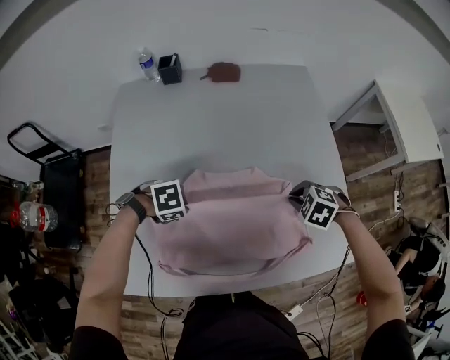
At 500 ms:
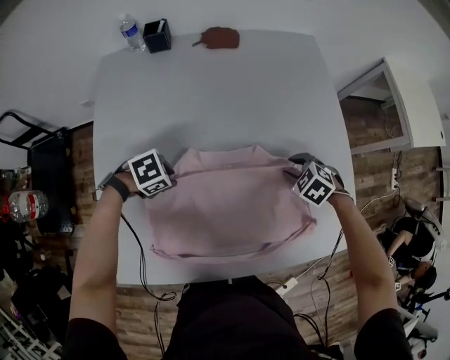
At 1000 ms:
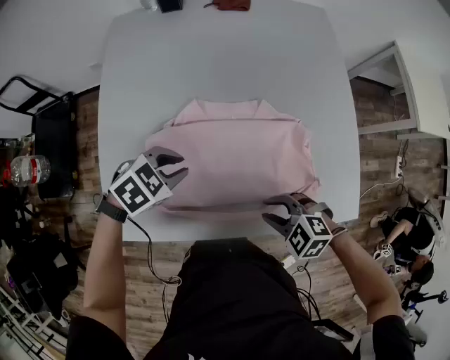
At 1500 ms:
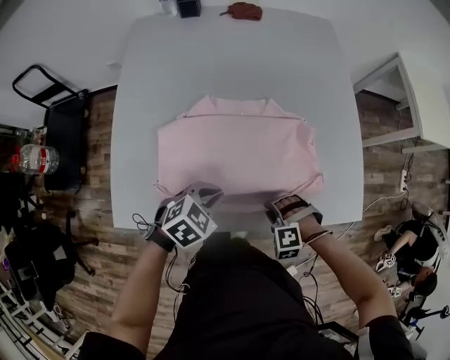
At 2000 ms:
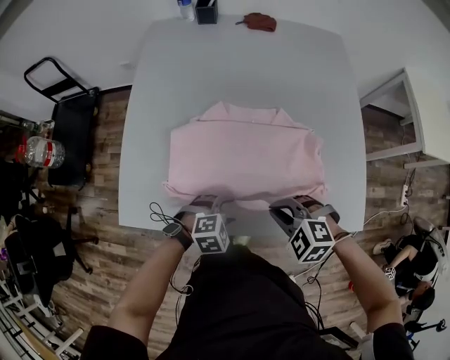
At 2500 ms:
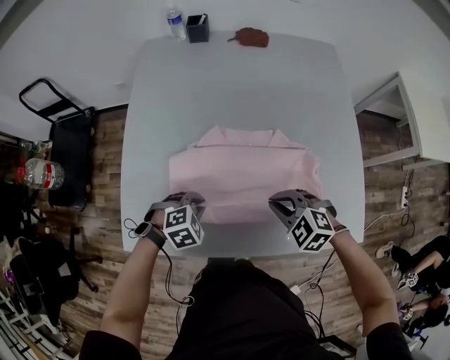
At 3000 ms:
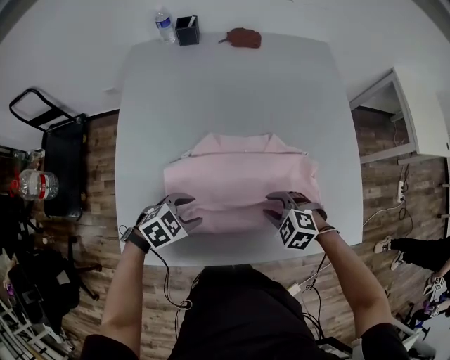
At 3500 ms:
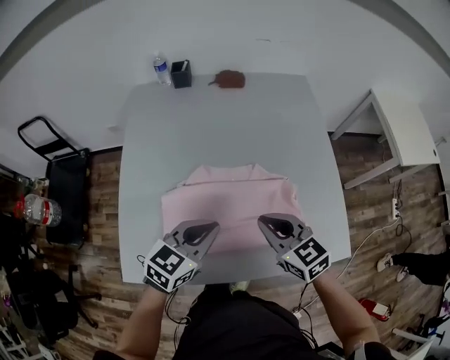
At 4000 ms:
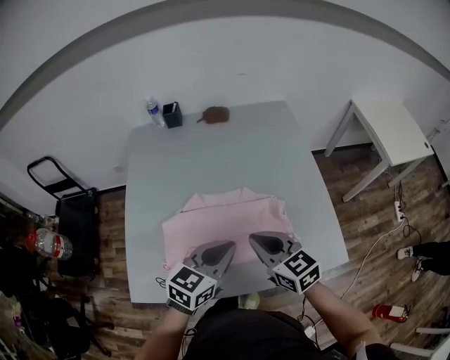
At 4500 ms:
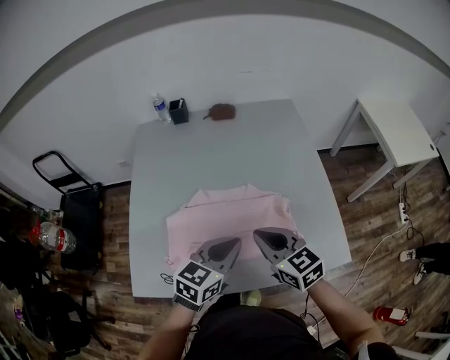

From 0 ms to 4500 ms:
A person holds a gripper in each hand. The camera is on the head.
From 0 ms to 2000 ms: The left gripper goes up and down, some 10 cm each way, reversing 2 times, rotates some 30 degrees, and opens up; the right gripper goes up and down, about 10 cm each way, reversing 3 times, changes its angle by about 30 degrees, and opens, then closes once more.
From 2000 ms to 4500 ms: The left gripper shifts some 25 cm upward, angles its fingers upward, by approximately 40 degrees, and closes. The right gripper shifts about 15 cm upward, tilts its fingers approximately 40 degrees upward, and opens, then closes again.

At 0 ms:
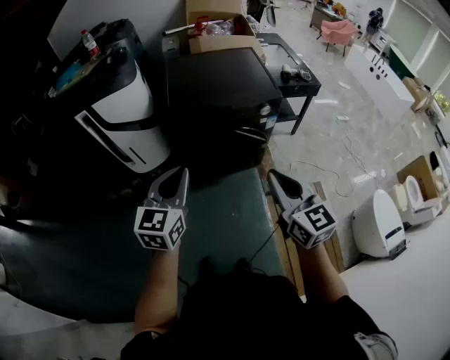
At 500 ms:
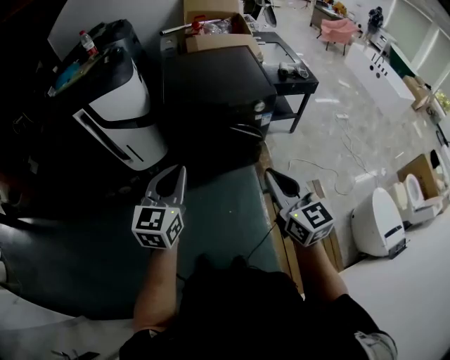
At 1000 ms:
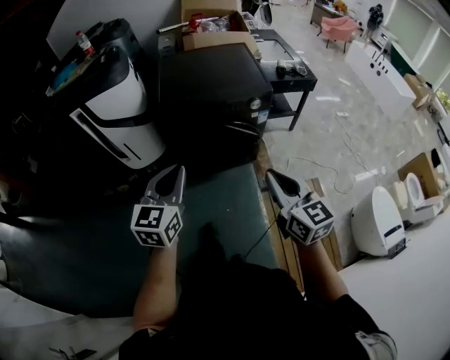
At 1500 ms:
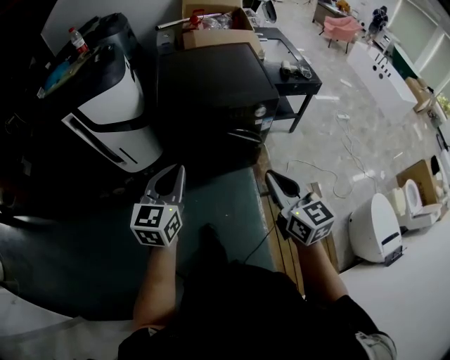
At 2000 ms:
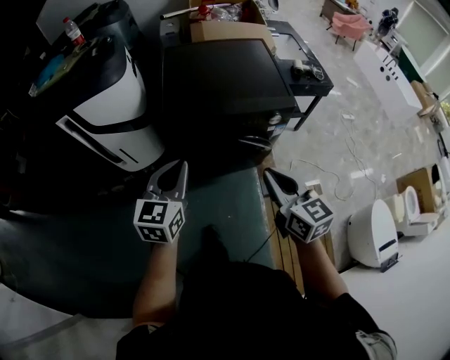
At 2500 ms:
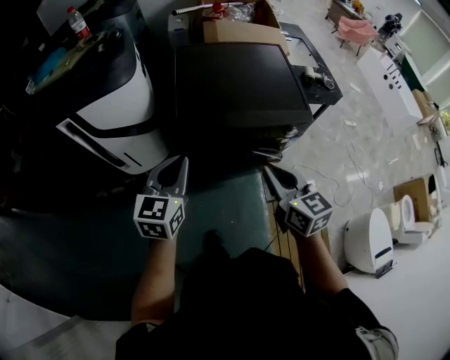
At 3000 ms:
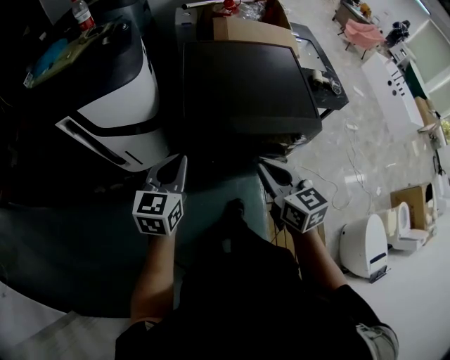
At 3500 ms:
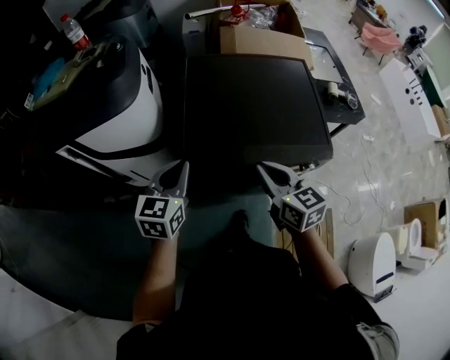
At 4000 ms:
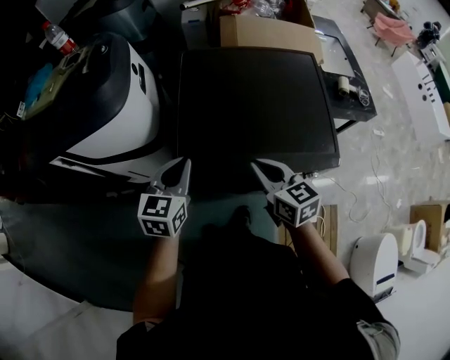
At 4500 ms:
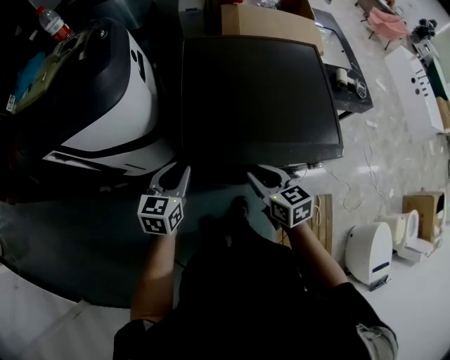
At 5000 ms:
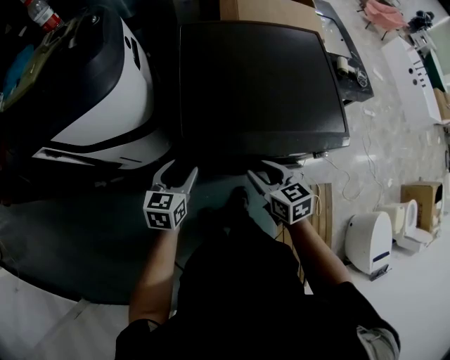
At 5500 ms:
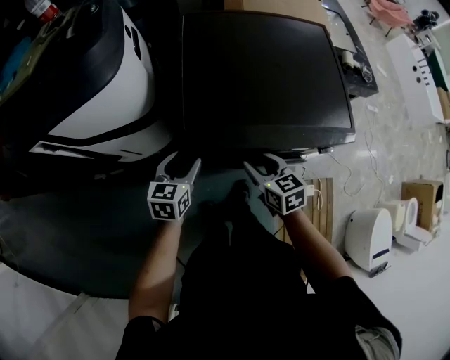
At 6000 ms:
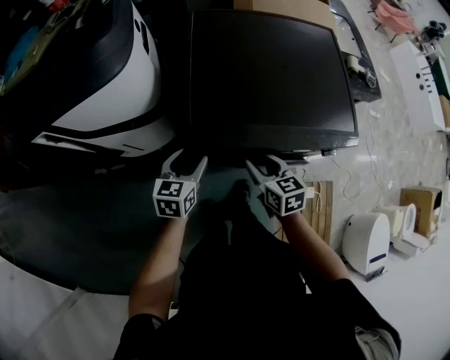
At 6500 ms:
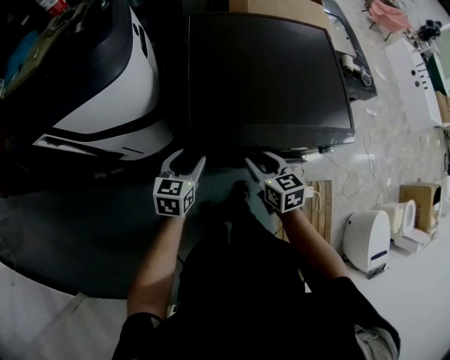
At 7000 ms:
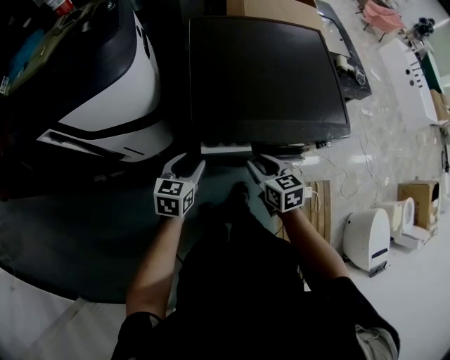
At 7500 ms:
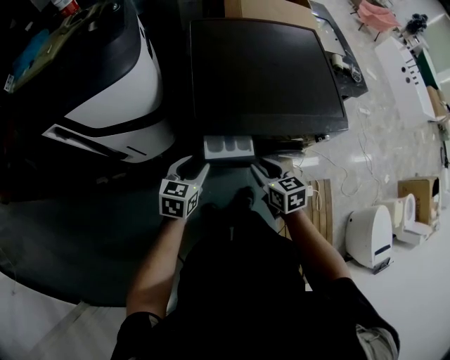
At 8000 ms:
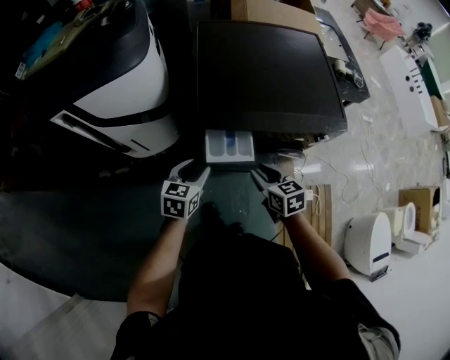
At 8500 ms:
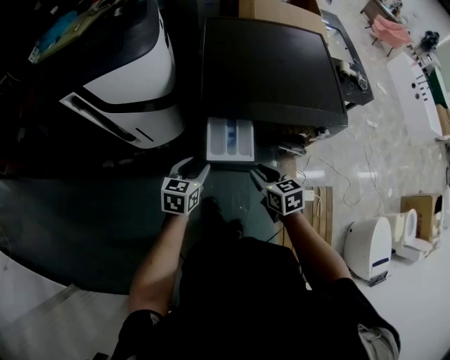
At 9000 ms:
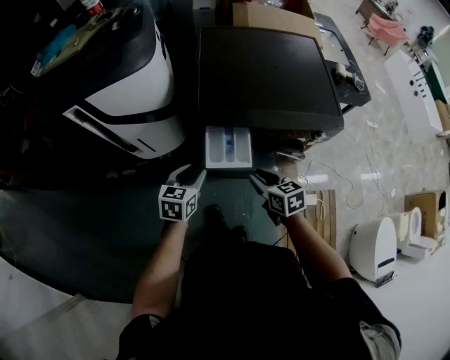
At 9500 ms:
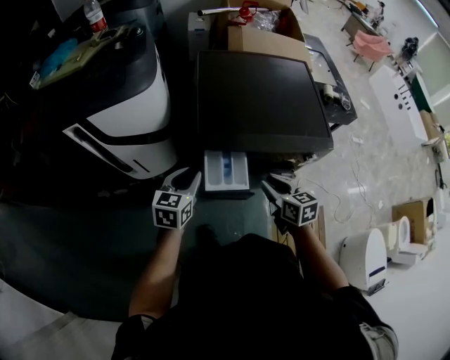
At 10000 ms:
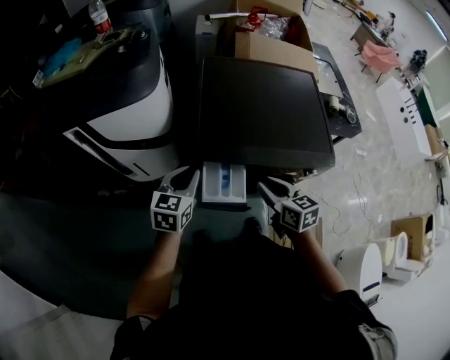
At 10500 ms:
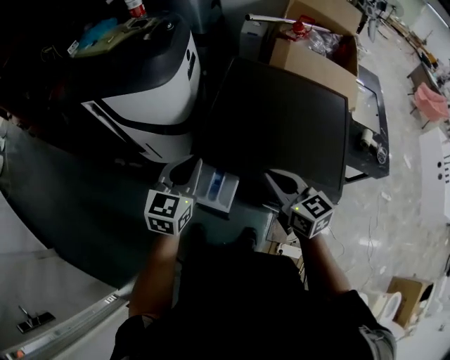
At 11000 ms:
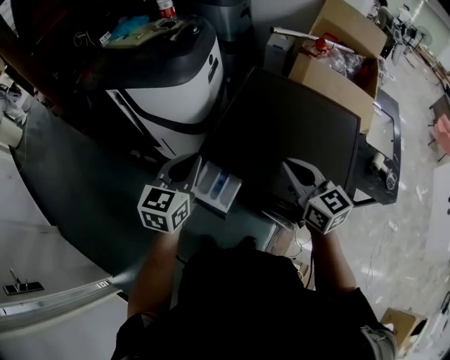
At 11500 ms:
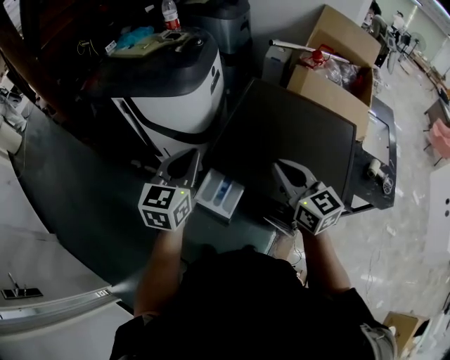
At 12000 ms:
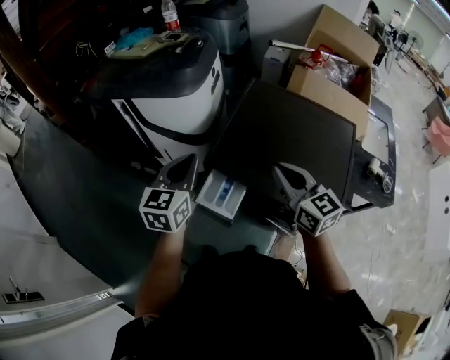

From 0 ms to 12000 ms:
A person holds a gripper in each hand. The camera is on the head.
From 0 ms to 2000 ms: Both grippers travel together forward, some 20 cm.
From 2000 ms to 4000 ms: The two grippers go approximately 35 cm forward.
From 4000 ms to 6000 ms: The right gripper goes some 15 cm downward and to the left, and opens. The left gripper heads downward, covering about 15 cm, and opens up.
From 6000 ms to 8000 ms: Both grippers travel together backward, roughly 10 cm.
From 8000 ms to 10000 ms: The two grippers go some 10 cm upward. The left gripper closes its fingers.
From 10000 ms to 12000 ms: The two grippers go about 15 cm upward. The left gripper changes its angle by approximately 30 degrees. Meanwhile the right gripper changes its angle by some 40 degrees, and closes.

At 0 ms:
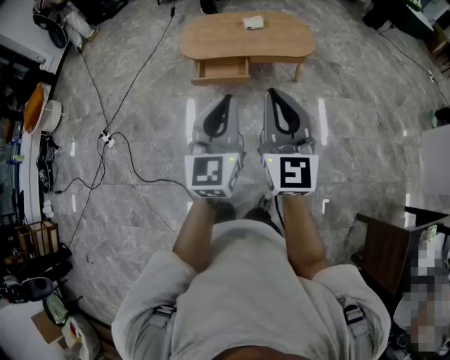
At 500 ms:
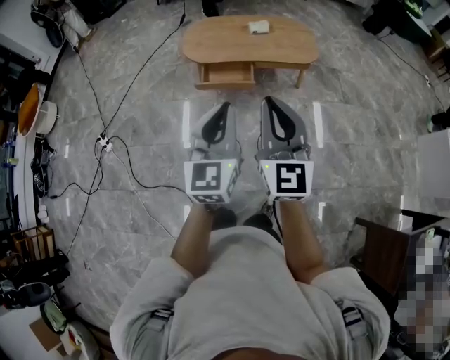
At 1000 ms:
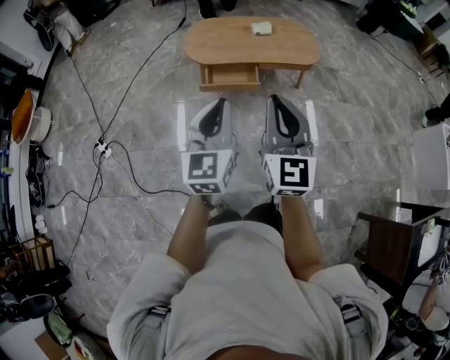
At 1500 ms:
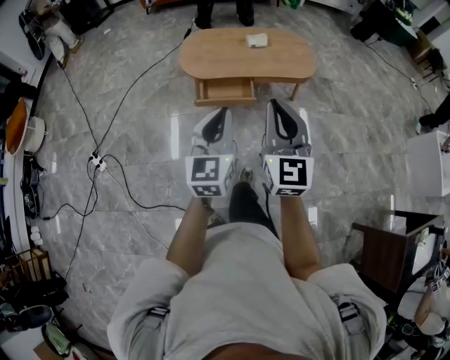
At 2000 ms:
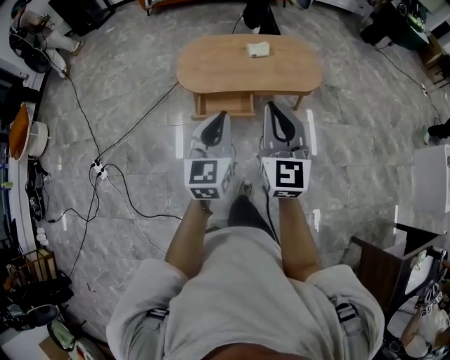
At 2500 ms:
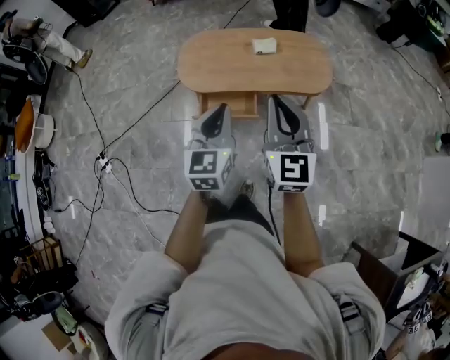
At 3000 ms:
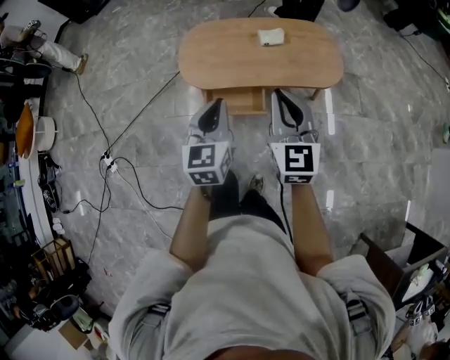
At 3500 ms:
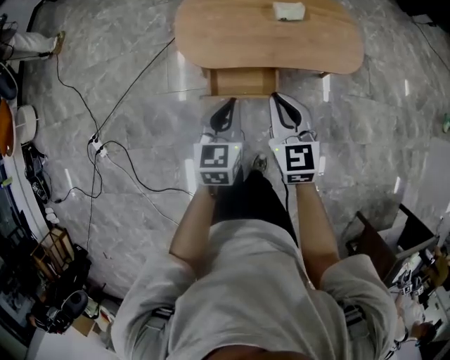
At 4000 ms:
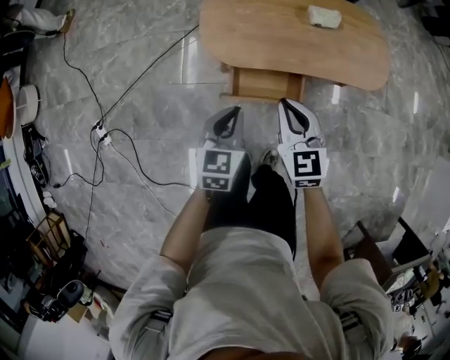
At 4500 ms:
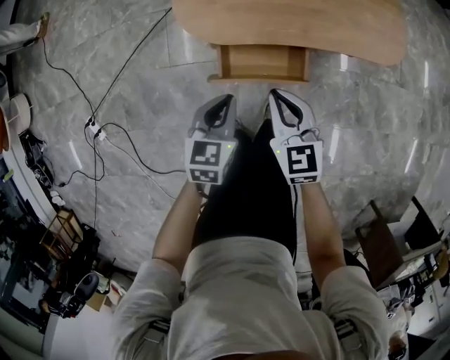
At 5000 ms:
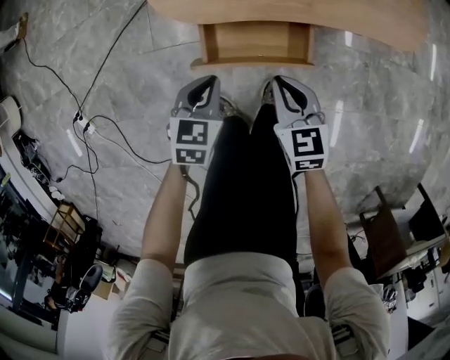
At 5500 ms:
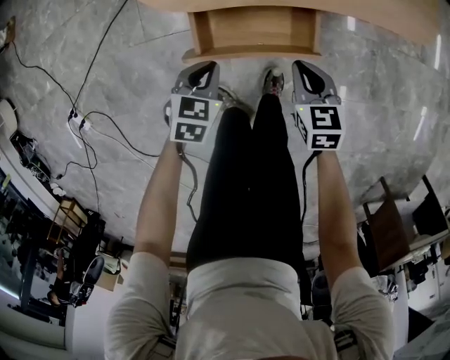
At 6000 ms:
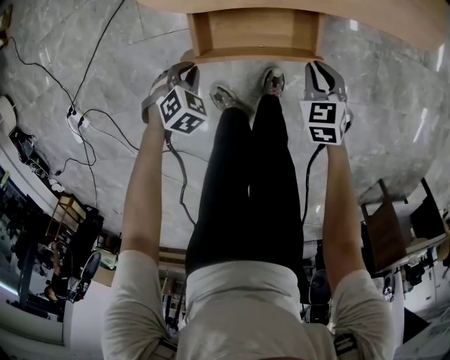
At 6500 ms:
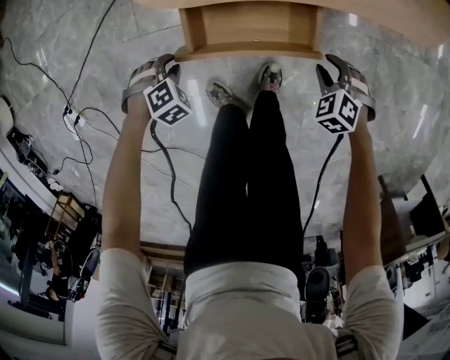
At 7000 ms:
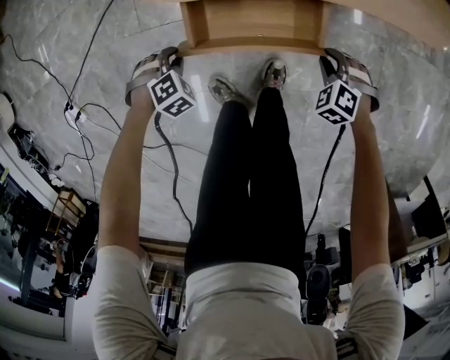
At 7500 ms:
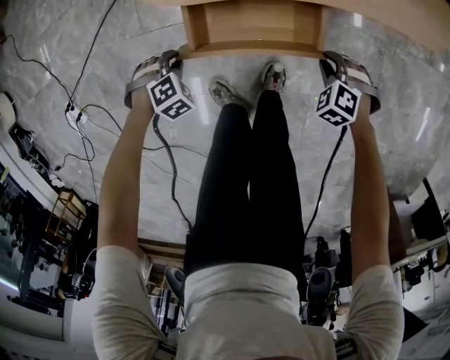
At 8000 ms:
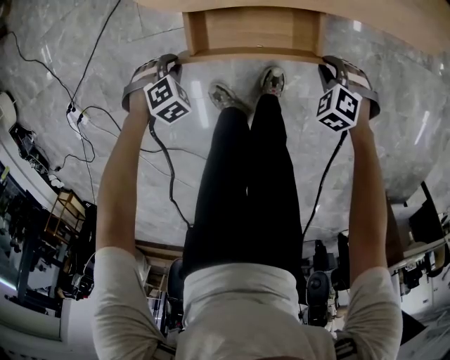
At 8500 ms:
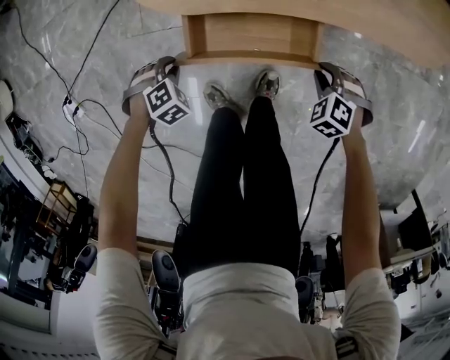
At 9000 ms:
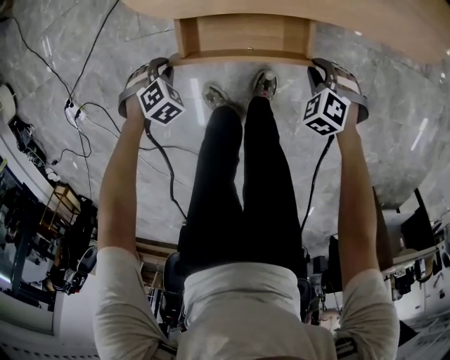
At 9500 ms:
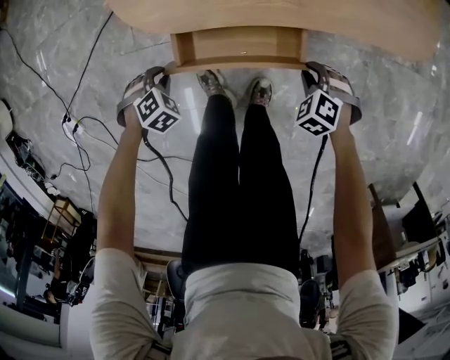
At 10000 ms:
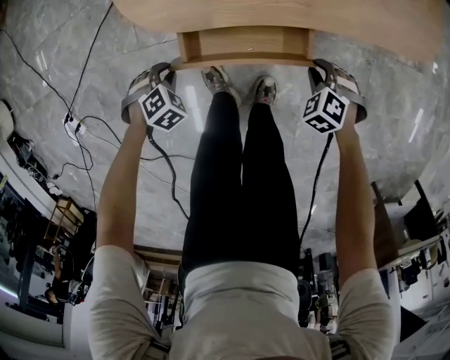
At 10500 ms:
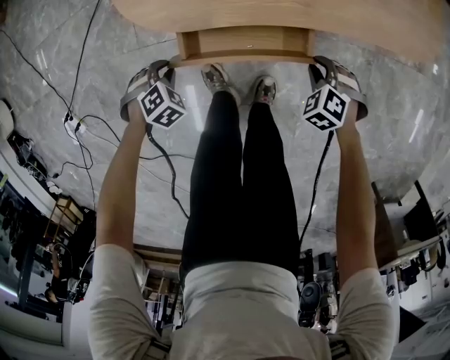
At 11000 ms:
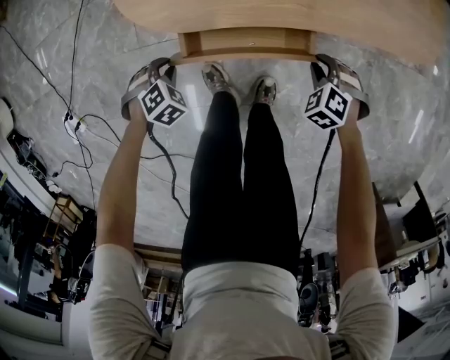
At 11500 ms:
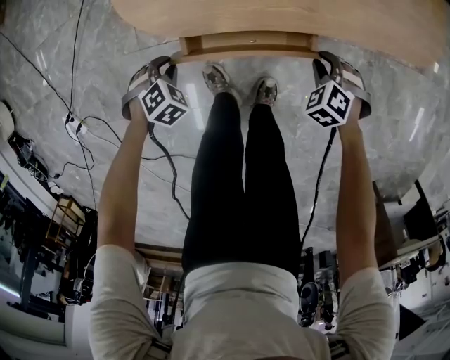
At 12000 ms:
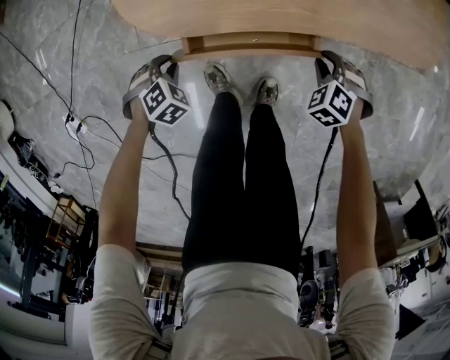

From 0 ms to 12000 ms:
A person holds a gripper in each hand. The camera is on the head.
From 0 ms to 2000 ms: The left gripper heads forward and to the left, covering roughly 25 cm. The right gripper shifts some 25 cm forward.
From 2000 ms to 4000 ms: The two grippers go approximately 40 cm downward, forward and to the left. The left gripper rotates some 30 degrees, while the right gripper swivels about 30 degrees.
From 4000 ms to 6000 ms: The grippers both shift downward by some 40 cm. The left gripper tips its fingers downward by approximately 40 degrees. The right gripper turns by some 30 degrees.
From 6000 ms to 8000 ms: The right gripper is displaced downward by approximately 5 cm, and rotates around the line of its fingers by some 40 degrees, counterclockwise from behind; the left gripper moves about 5 cm.
From 8000 ms to 10000 ms: There are only small adjustments of the grippers.
From 10000 ms to 12000 ms: The grippers make only small movements.
